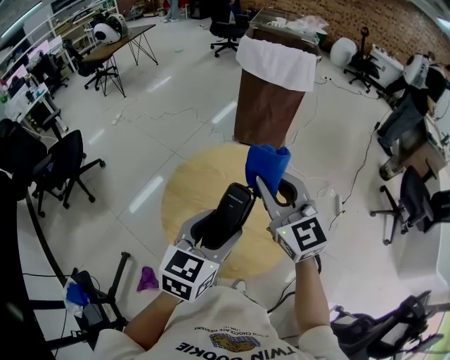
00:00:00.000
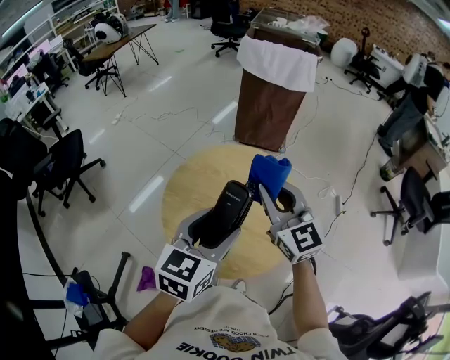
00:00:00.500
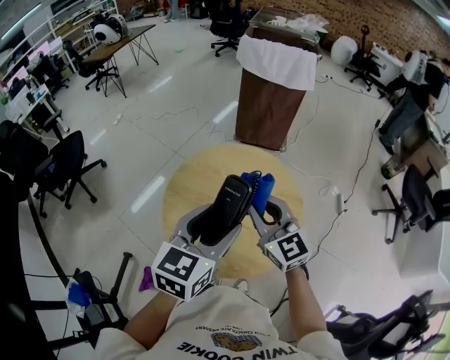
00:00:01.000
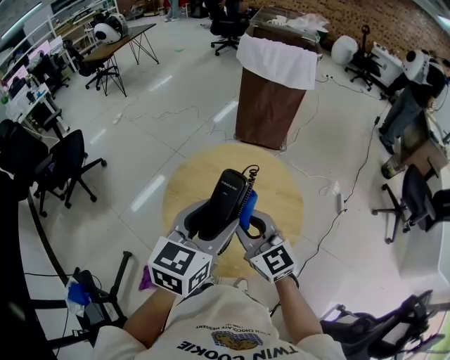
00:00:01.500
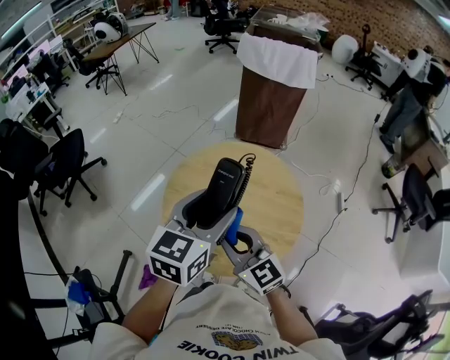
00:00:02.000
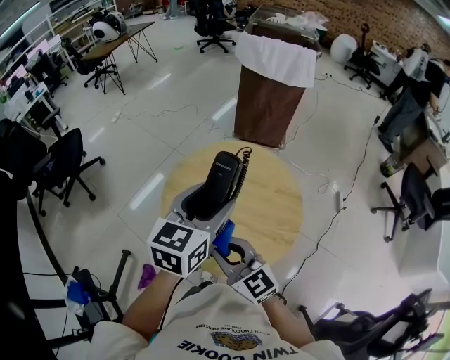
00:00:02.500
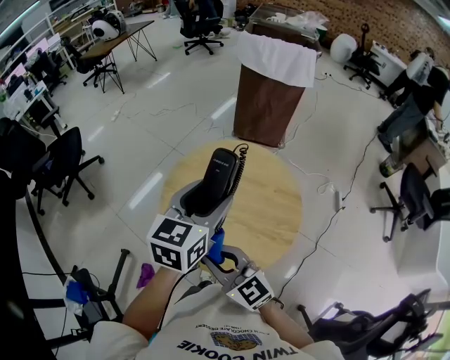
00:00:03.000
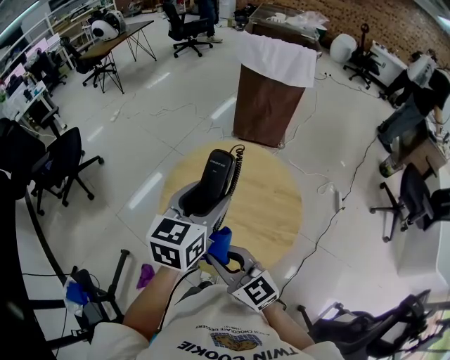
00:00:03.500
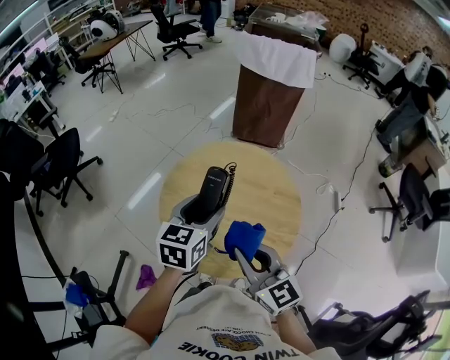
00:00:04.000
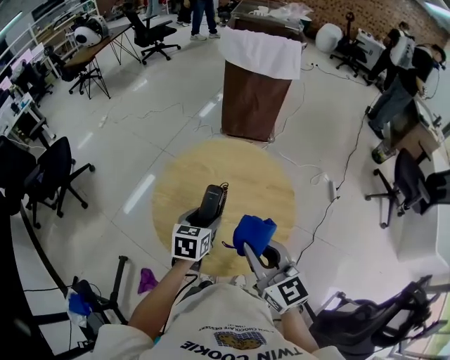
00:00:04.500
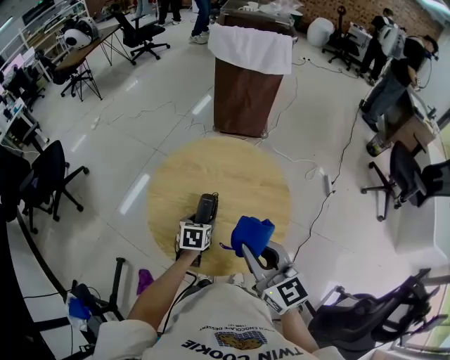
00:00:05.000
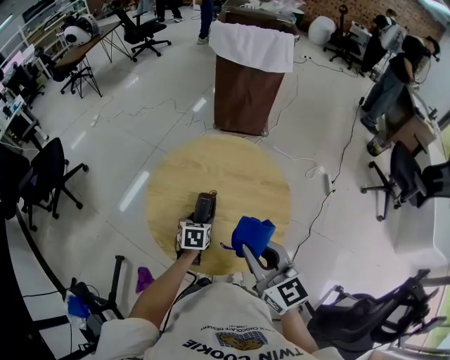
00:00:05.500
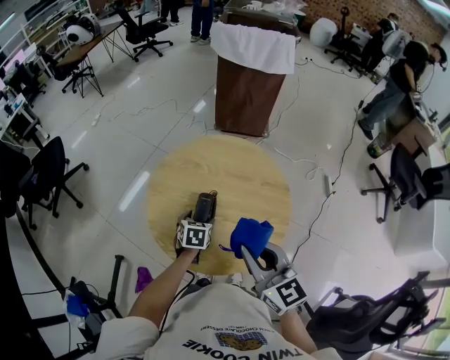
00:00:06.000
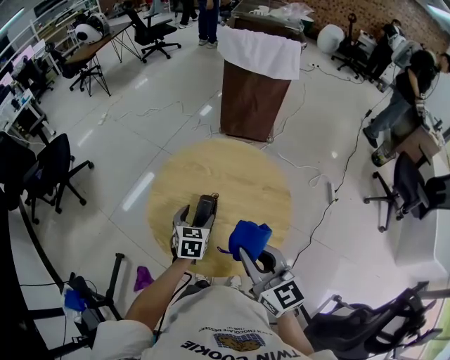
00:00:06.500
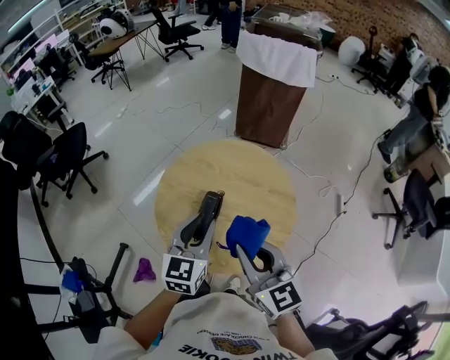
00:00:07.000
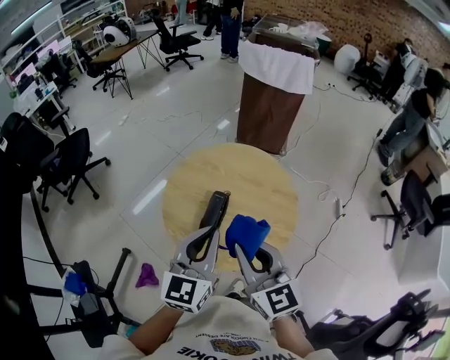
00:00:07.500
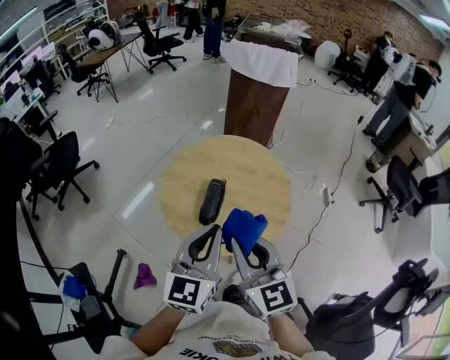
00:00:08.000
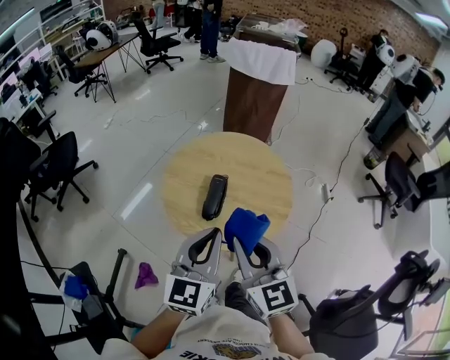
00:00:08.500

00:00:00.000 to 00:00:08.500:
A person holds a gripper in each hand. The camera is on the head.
00:00:00.000 to 00:00:02.000: The left gripper shifts by roughly 5 cm. Meanwhile the right gripper is displaced downward, backward and to the left by some 20 cm.
00:00:02.000 to 00:00:04.000: The right gripper shifts by about 5 cm, while the left gripper goes roughly 10 cm downward.
00:00:04.000 to 00:00:06.500: The left gripper moves downward, approximately 15 cm.
00:00:06.500 to 00:00:08.500: The right gripper travels backward, to the left and upward by roughly 15 cm. Meanwhile the left gripper is displaced upward and backward by some 30 cm, points its fingers approximately 40 degrees further upward, and closes up.

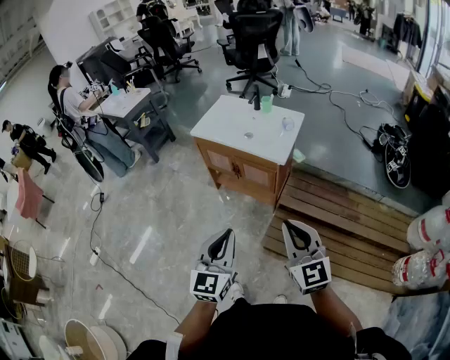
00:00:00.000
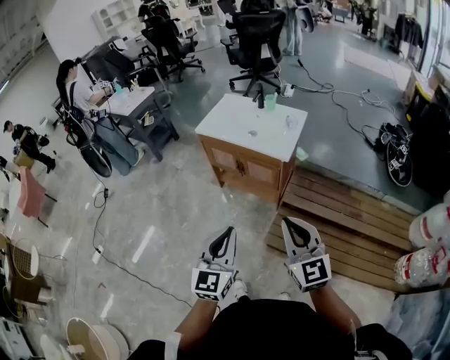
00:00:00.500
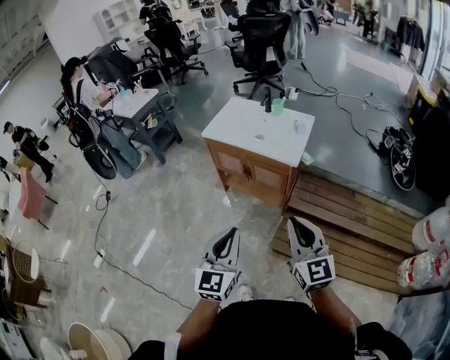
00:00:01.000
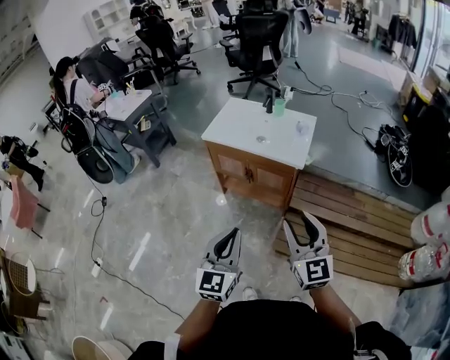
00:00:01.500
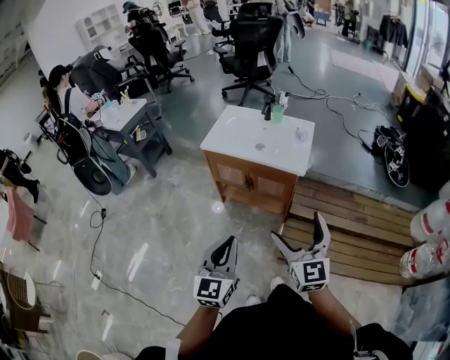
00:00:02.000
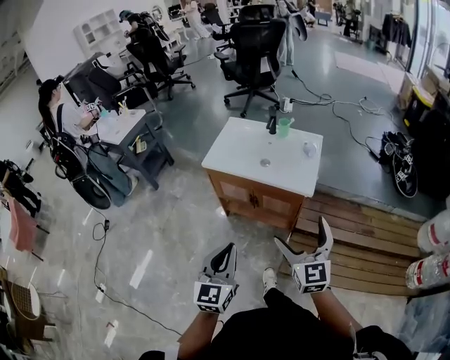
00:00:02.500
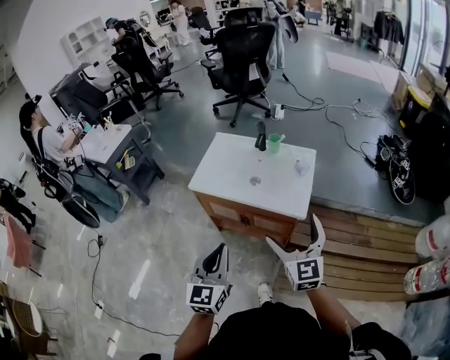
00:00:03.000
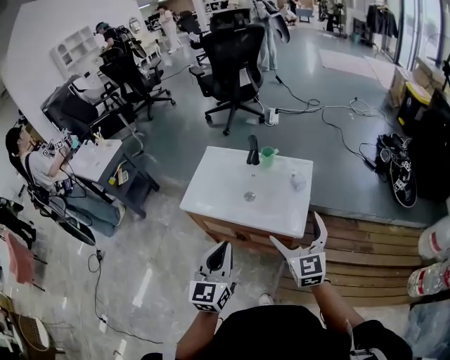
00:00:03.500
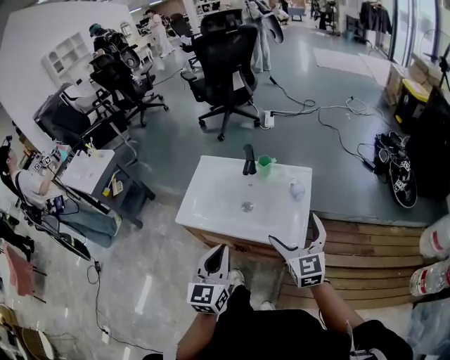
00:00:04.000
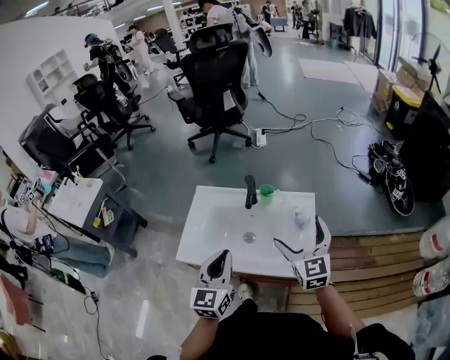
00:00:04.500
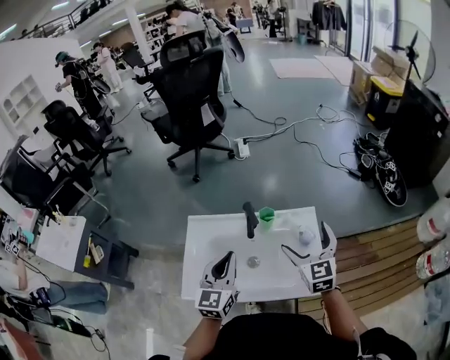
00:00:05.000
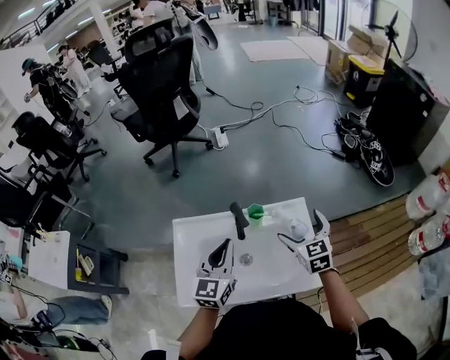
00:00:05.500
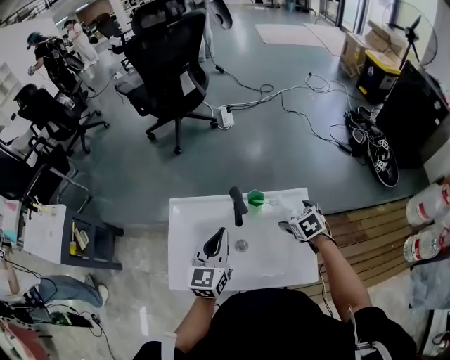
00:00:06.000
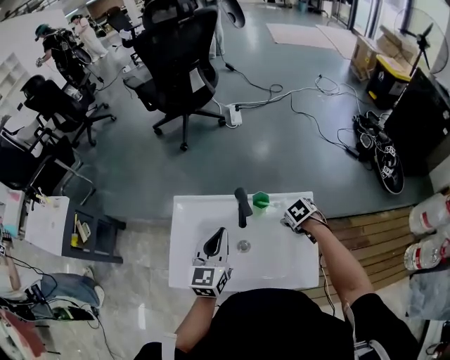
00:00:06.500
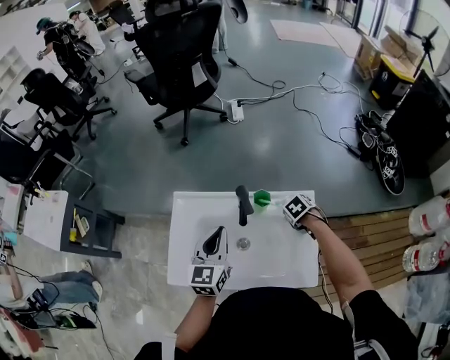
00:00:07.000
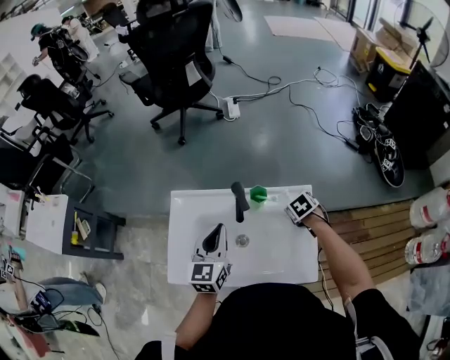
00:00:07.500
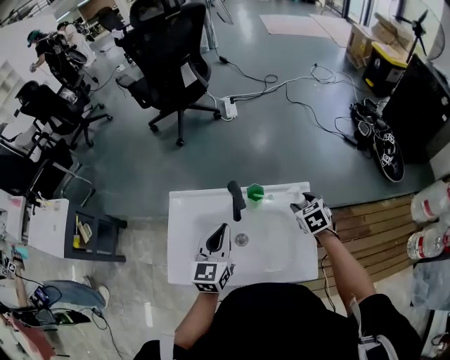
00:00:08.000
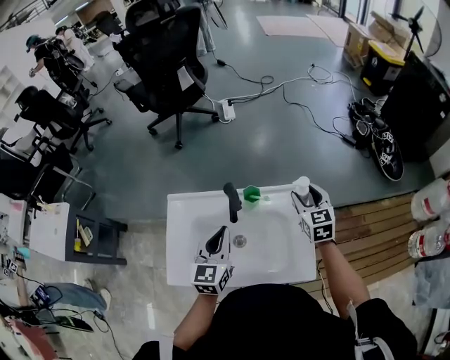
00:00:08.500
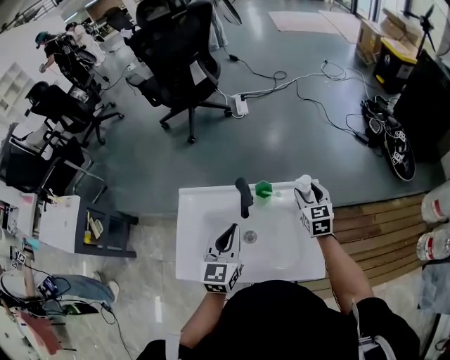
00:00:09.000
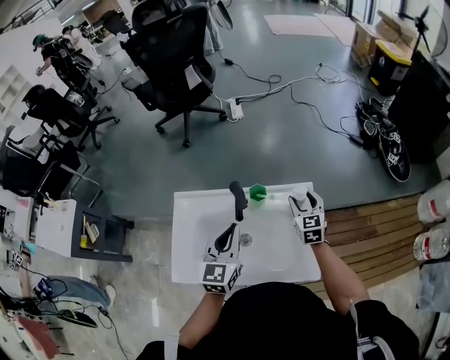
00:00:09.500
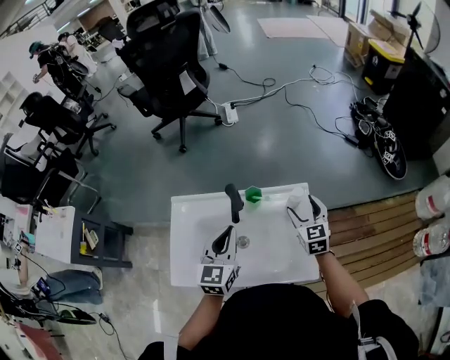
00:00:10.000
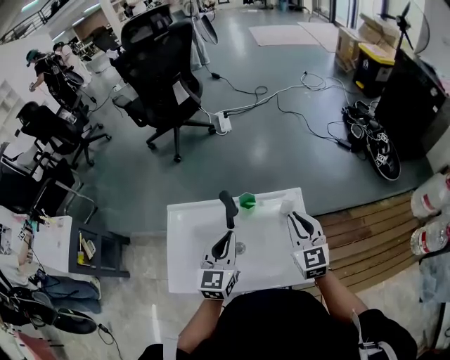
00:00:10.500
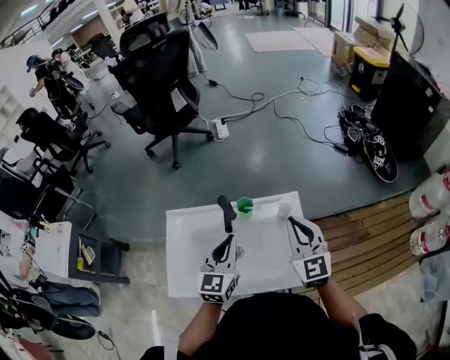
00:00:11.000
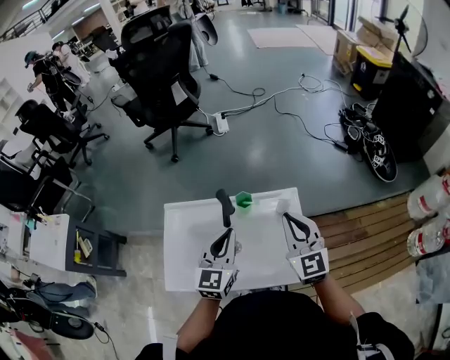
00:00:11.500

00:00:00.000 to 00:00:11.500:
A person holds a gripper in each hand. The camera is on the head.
00:00:00.000 to 00:00:02.000: Both grippers move to the left and forward, some 20 cm. The right gripper opens.
00:00:02.000 to 00:00:04.000: The two grippers travel together, forward, roughly 50 cm.
00:00:04.000 to 00:00:06.000: The right gripper goes some 40 cm forward and downward, and angles its fingers downward, by approximately 50 degrees; the left gripper heads forward, covering roughly 40 cm.
00:00:06.000 to 00:00:07.500: The right gripper is displaced downward by roughly 5 cm, and closes.
00:00:07.500 to 00:00:09.500: The right gripper is displaced upward by roughly 10 cm, and angles its fingers upward, by roughly 50 degrees. Meanwhile the left gripper travels to the right by about 5 cm.
00:00:09.500 to 00:00:11.500: The left gripper ends up some 5 cm from where it was. Meanwhile the right gripper heads upward and backward, covering approximately 20 cm, changes its angle by roughly 20 degrees, and closes its fingers.

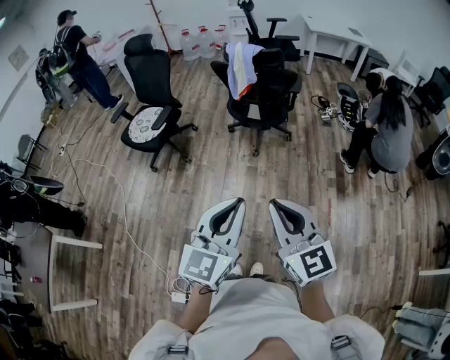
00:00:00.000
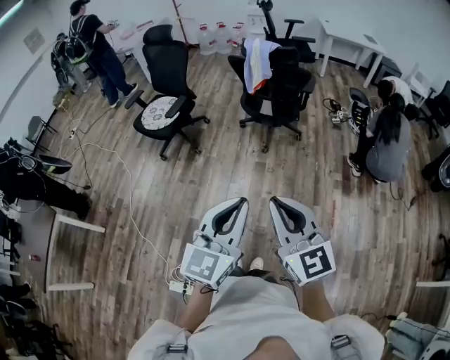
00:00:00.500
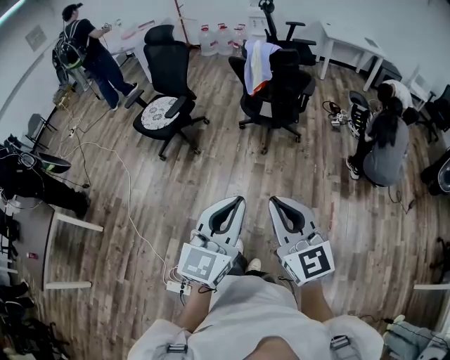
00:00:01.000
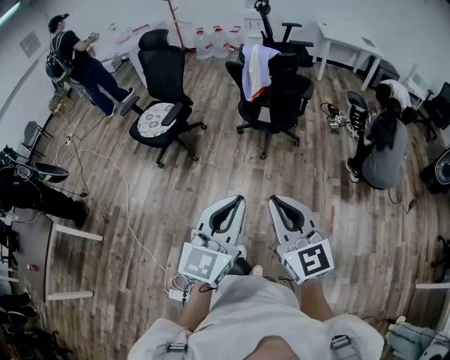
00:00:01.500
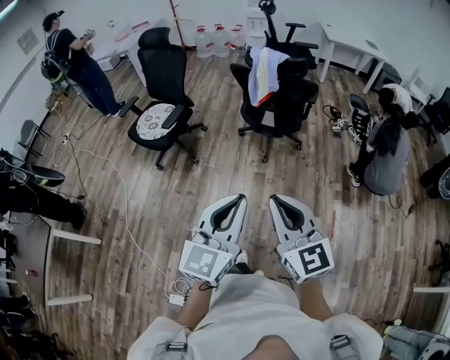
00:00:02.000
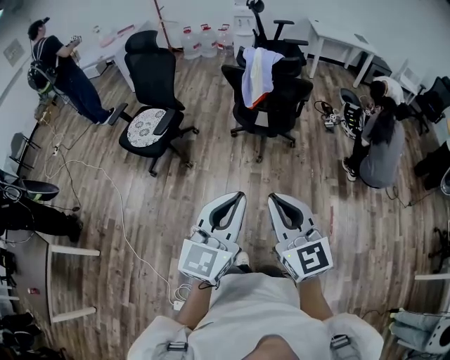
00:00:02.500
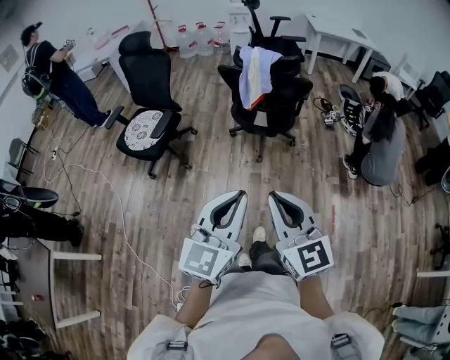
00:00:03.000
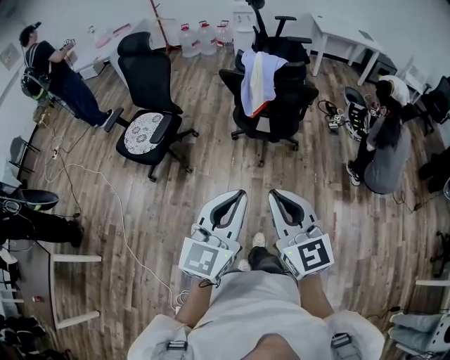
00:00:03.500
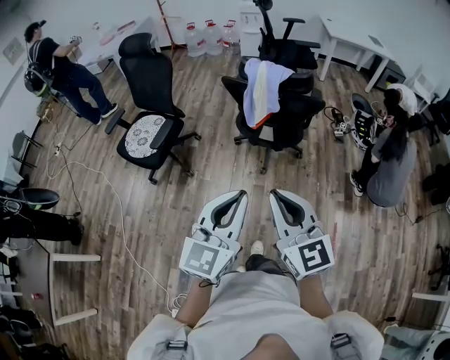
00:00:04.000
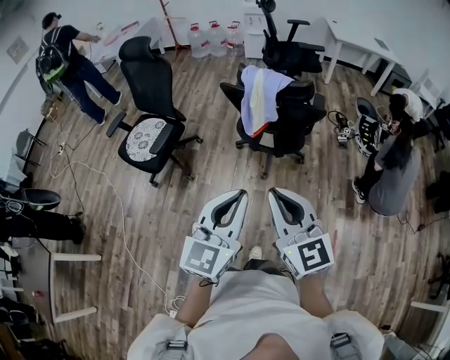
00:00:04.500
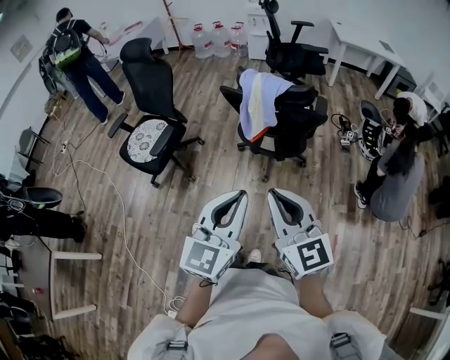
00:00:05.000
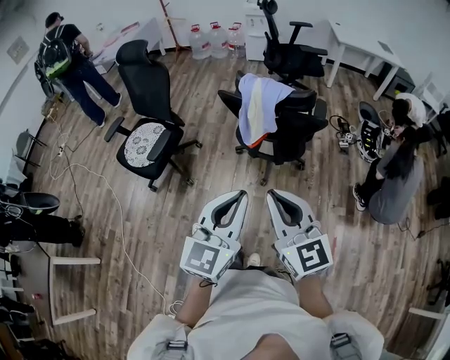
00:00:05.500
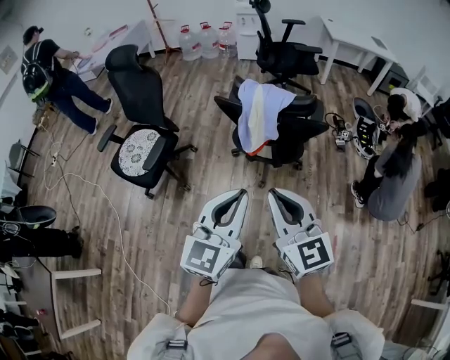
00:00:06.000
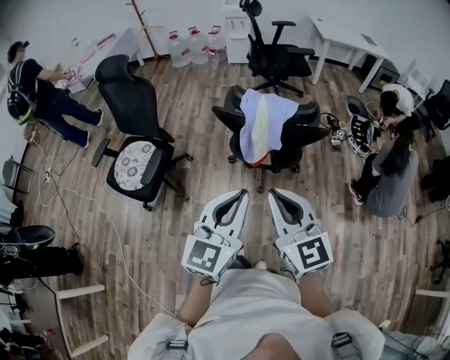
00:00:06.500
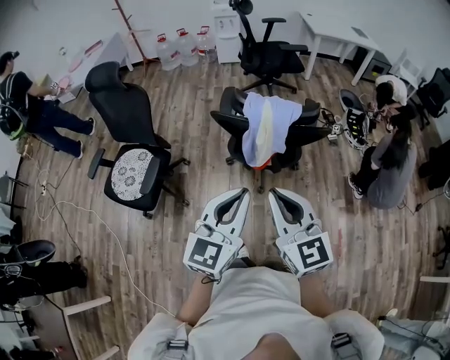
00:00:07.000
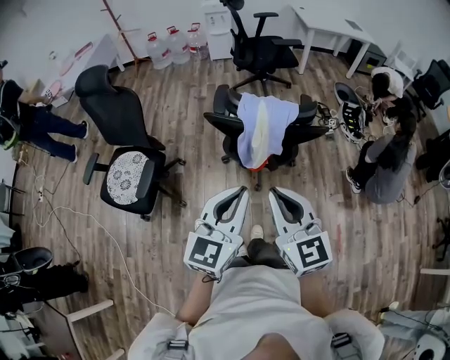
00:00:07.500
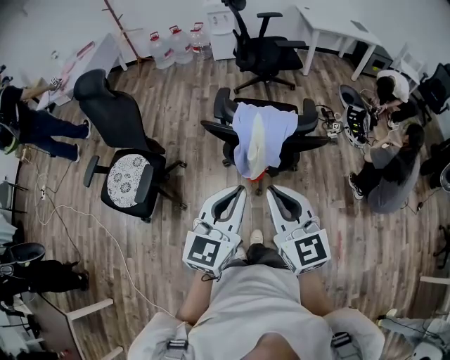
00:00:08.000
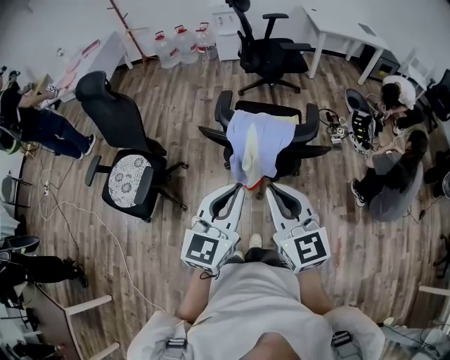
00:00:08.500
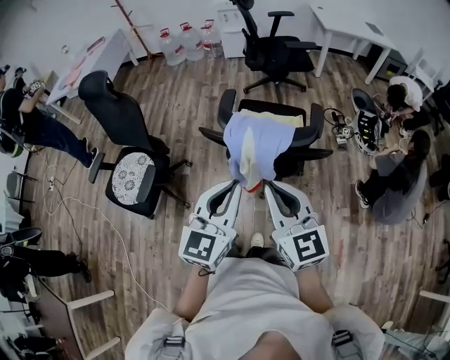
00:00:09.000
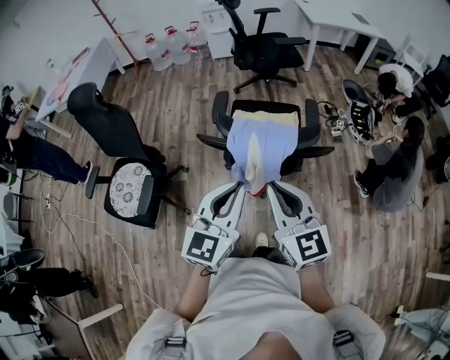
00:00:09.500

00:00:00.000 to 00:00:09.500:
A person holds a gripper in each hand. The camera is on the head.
00:00:00.000 to 00:00:02.000: Both grippers travel together forward and to the left, about 10 cm.
00:00:02.000 to 00:00:04.000: The grippers both shift forward by some 20 cm.
00:00:04.000 to 00:00:05.500: Both grippers move forward, roughly 10 cm.
00:00:05.500 to 00:00:07.500: The two grippers go some 15 cm forward and to the left.
00:00:07.500 to 00:00:09.500: Both grippers move forward, roughly 10 cm.
